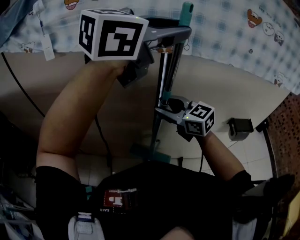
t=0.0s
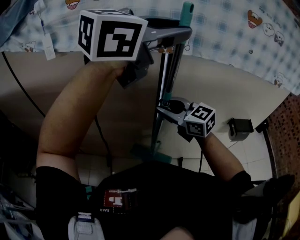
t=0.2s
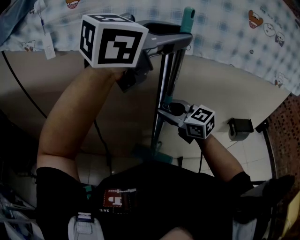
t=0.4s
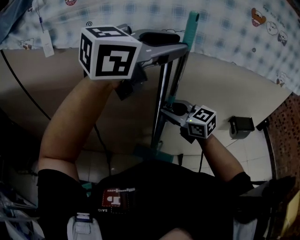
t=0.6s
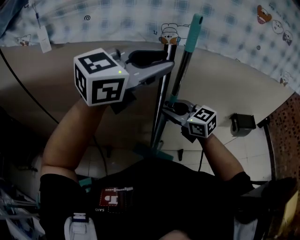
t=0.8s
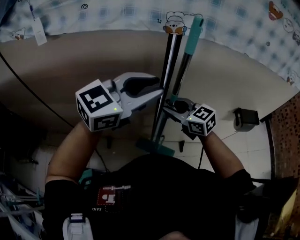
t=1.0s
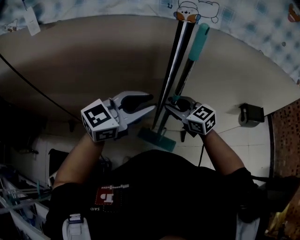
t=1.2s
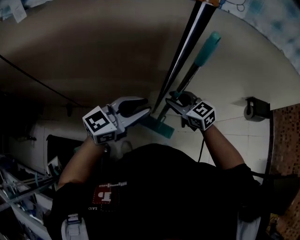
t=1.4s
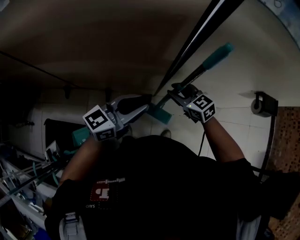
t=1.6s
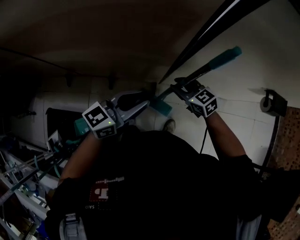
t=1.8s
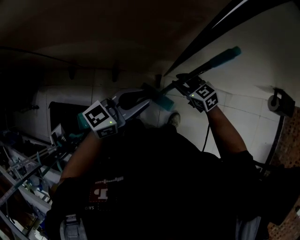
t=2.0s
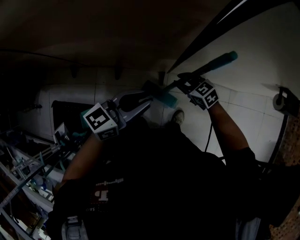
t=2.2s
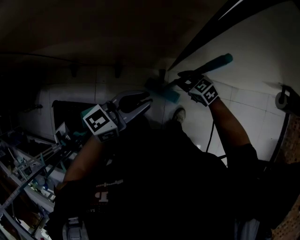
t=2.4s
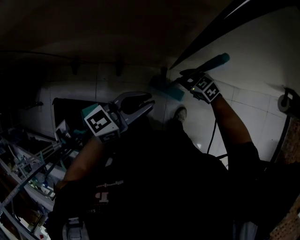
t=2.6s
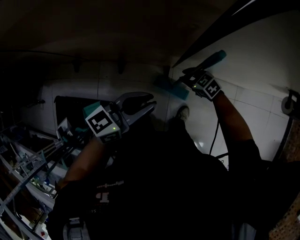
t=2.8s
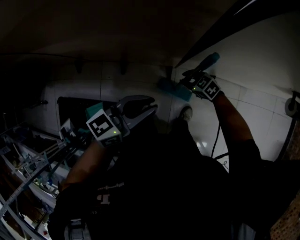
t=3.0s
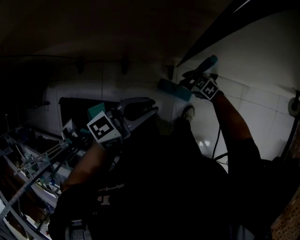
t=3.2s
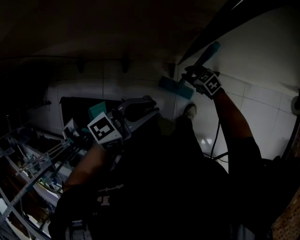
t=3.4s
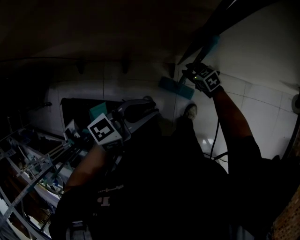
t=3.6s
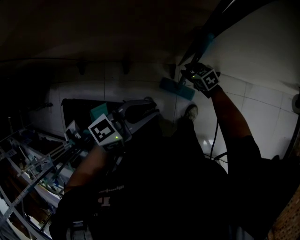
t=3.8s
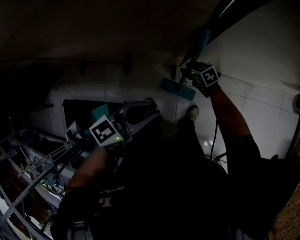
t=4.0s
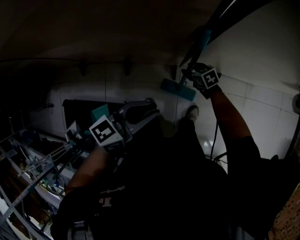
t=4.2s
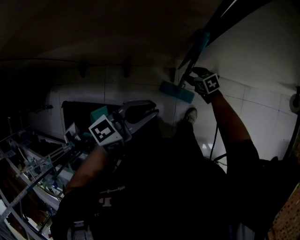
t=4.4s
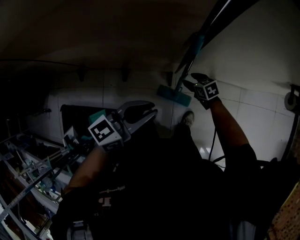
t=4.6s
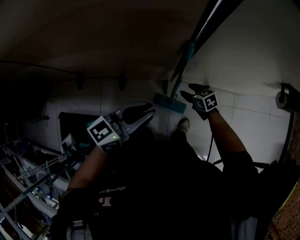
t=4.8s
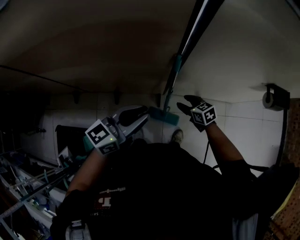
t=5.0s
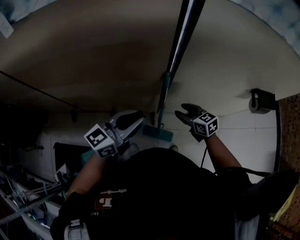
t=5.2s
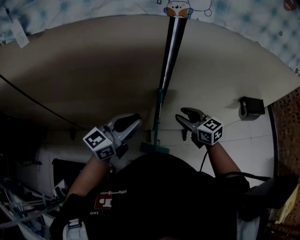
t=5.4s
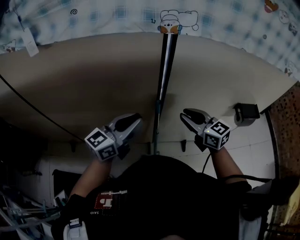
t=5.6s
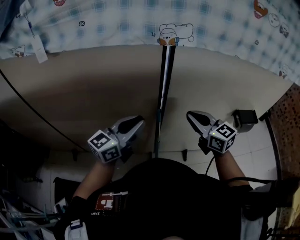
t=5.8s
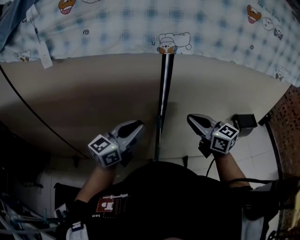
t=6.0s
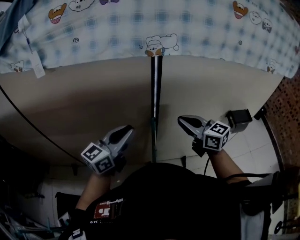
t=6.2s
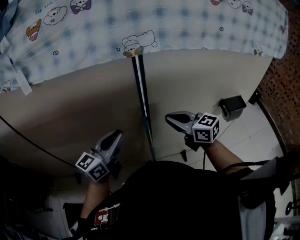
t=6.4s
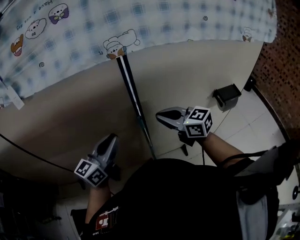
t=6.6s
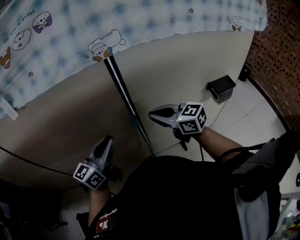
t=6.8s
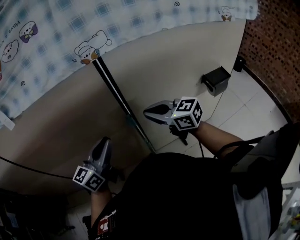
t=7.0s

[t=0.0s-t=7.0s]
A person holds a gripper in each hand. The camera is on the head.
t=0.0s to t=1.4s: The right gripper moves downward, about 25 cm; the left gripper heads downward, covering approximately 40 cm, and changes its angle by roughly 20 degrees.
t=1.4s to t=2.8s: The right gripper shifts approximately 30 cm downward, and swivels some 30 degrees; the left gripper shifts approximately 15 cm downward, and swivels some 20 degrees.
t=2.8s to t=4.2s: The right gripper goes about 5 cm downward, and swivels about 20 degrees.
t=4.2s to t=5.6s: The left gripper travels upward by some 25 cm, and turns by approximately 30 degrees. Meanwhile the right gripper heads upward, covering some 50 cm, and angles its fingers upward, by about 40 degrees.
t=5.6s to t=7.0s: The right gripper heads upward, covering roughly 5 cm, and closes up.

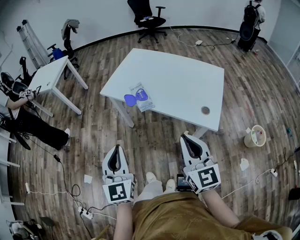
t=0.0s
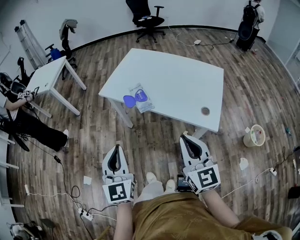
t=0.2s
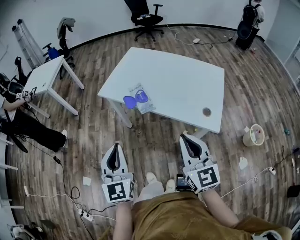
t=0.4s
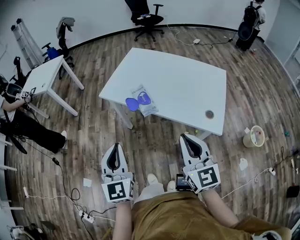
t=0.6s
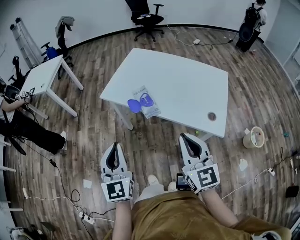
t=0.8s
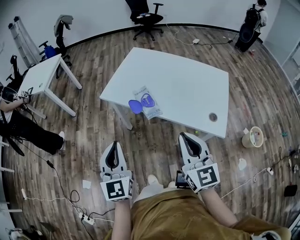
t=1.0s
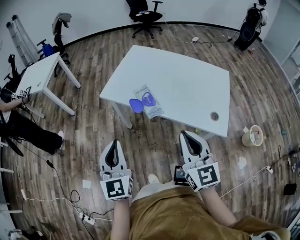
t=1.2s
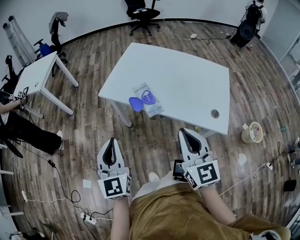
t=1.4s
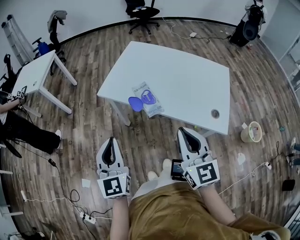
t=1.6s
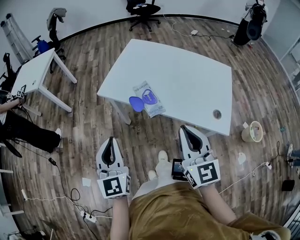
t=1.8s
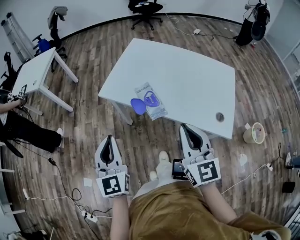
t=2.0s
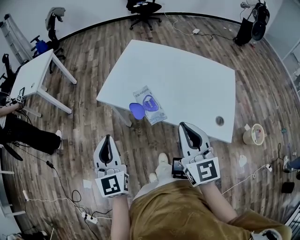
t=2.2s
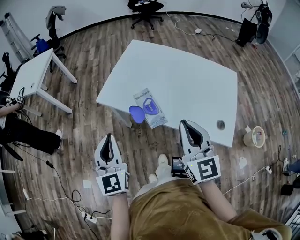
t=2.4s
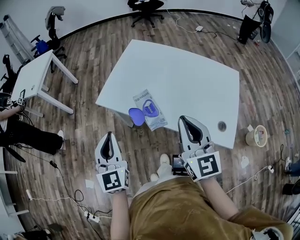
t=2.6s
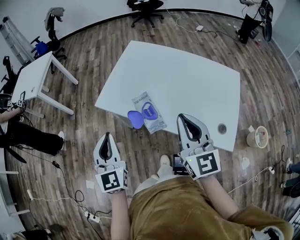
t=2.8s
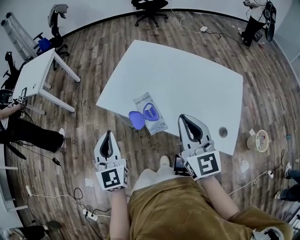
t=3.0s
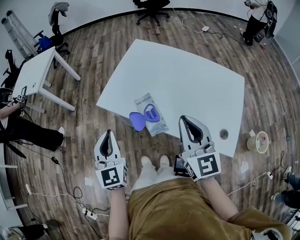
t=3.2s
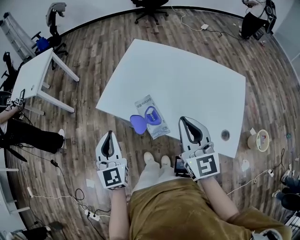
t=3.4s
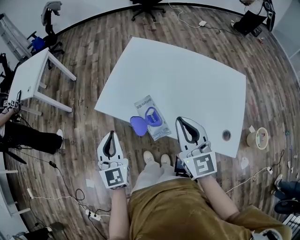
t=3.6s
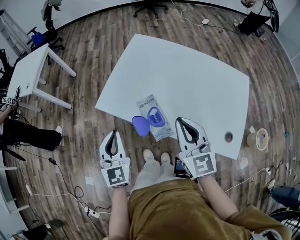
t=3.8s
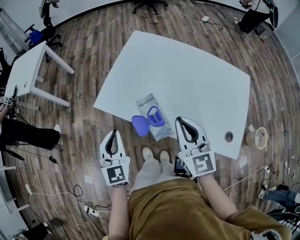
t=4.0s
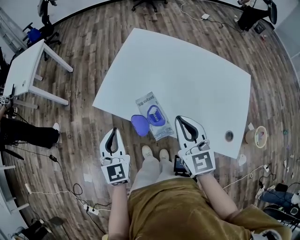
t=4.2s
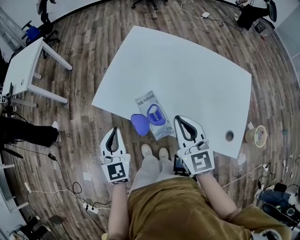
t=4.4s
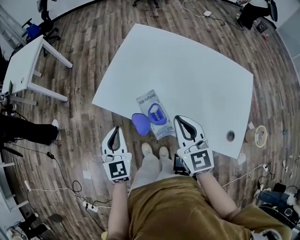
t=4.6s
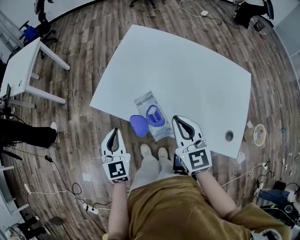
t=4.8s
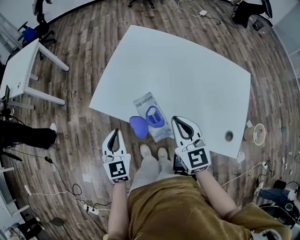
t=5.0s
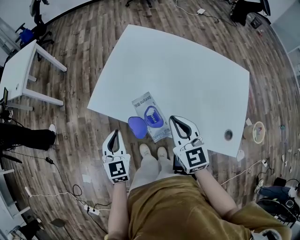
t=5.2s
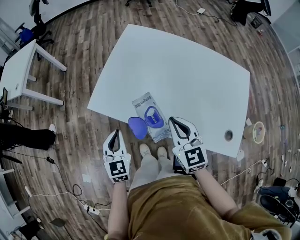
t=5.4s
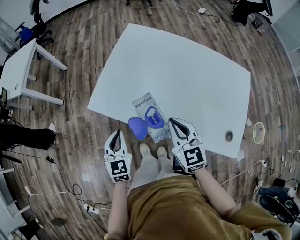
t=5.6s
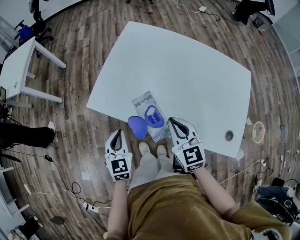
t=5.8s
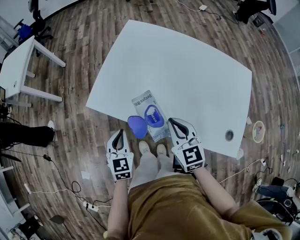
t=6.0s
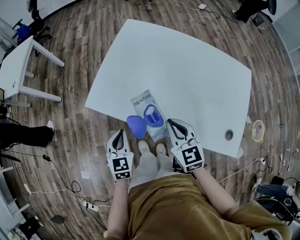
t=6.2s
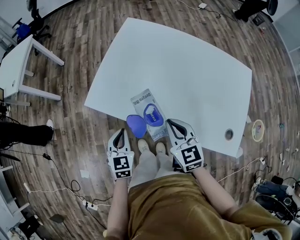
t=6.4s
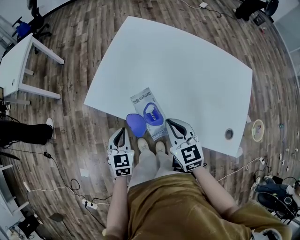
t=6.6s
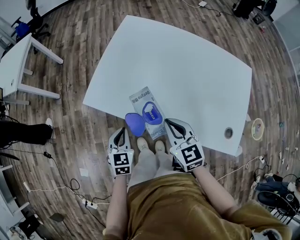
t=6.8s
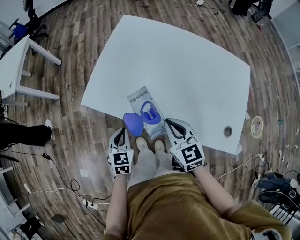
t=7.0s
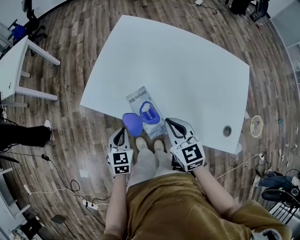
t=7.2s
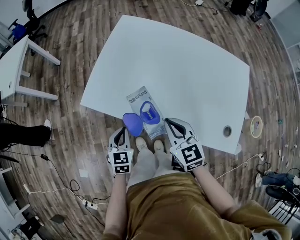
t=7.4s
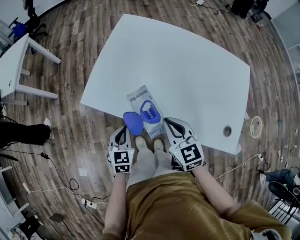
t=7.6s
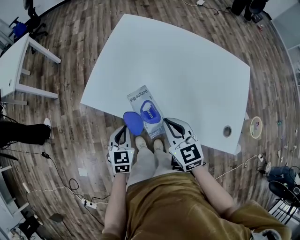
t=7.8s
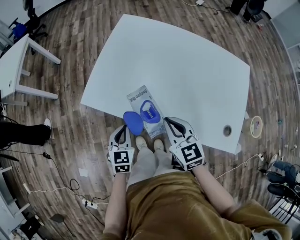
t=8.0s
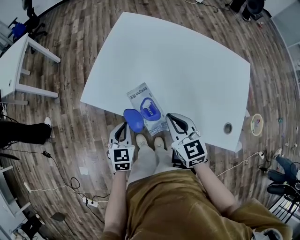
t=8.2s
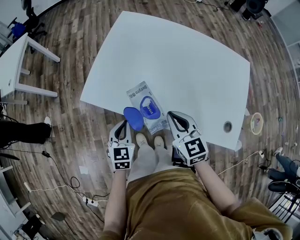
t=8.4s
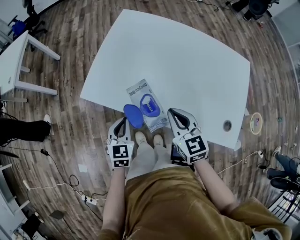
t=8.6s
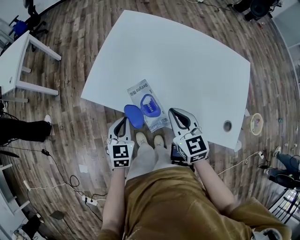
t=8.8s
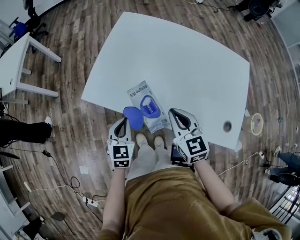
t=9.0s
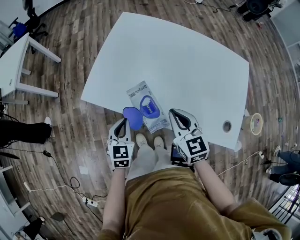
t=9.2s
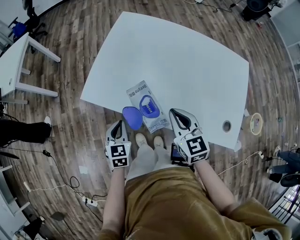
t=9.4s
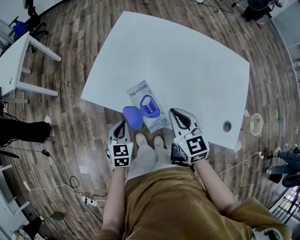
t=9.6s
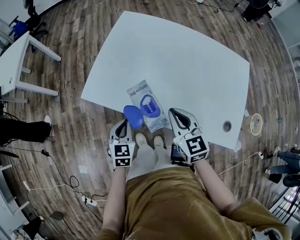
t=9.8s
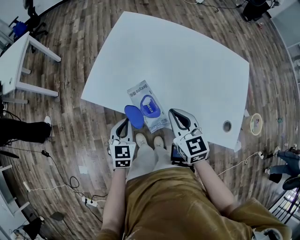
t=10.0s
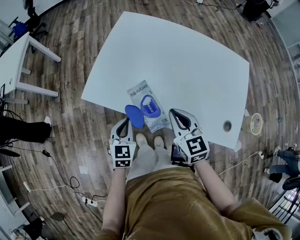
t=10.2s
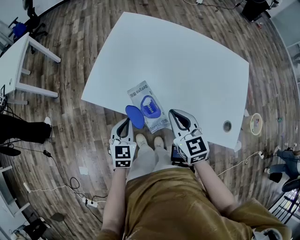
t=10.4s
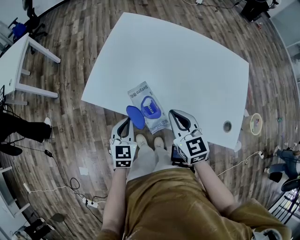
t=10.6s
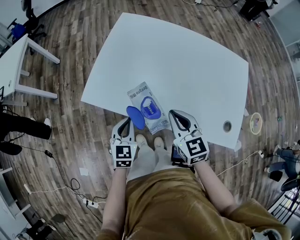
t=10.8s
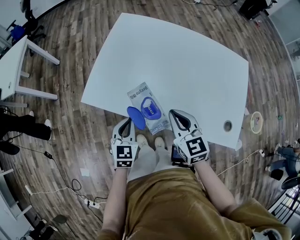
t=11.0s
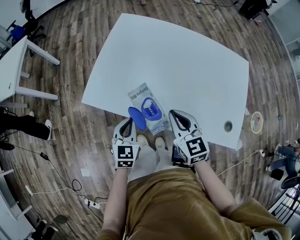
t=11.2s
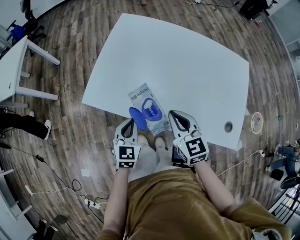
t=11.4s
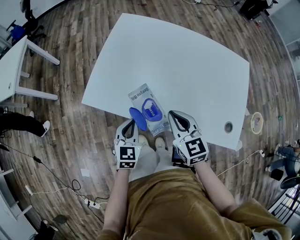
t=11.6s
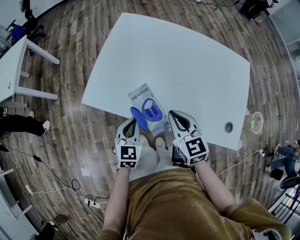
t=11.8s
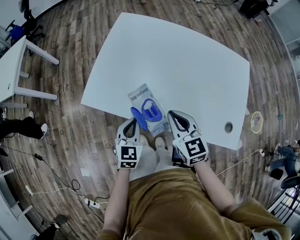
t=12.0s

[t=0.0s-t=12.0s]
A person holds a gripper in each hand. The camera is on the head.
t=0.0s to t=1.6s: The two grippers go roughly 15 cm forward and to the left.
t=1.6s to t=3.0s: Both grippers move forward, approximately 15 cm.
t=3.0s to t=4.4s: Both grippers move downward and forward, about 15 cm.
t=4.4s to t=6.0s: The two grippers go roughly 10 cm downward.
t=6.0s to t=7.6s: The left gripper shifts by roughly 5 cm.
t=7.6s to t=10.4s: The grippers move only a little.
t=10.4s to t=12.0s: The grippers stay close to where they were, moving slightly.

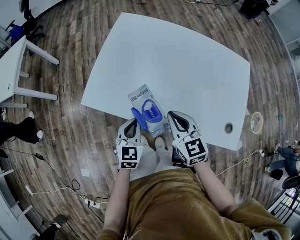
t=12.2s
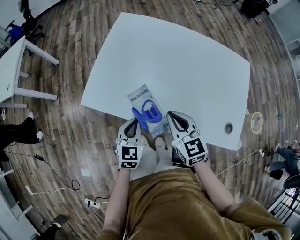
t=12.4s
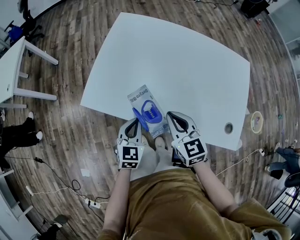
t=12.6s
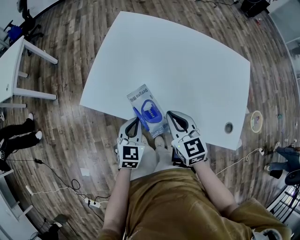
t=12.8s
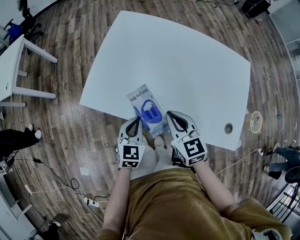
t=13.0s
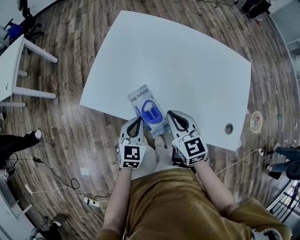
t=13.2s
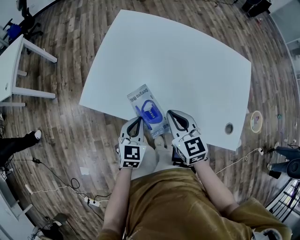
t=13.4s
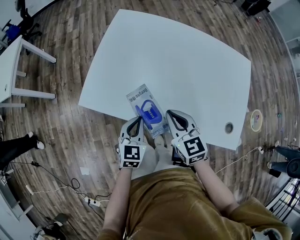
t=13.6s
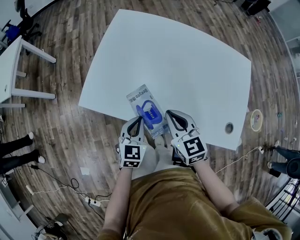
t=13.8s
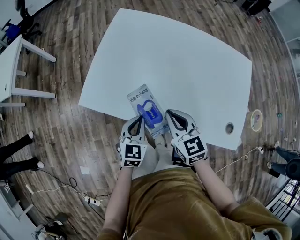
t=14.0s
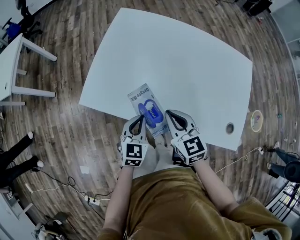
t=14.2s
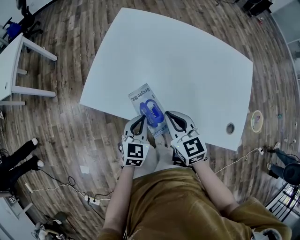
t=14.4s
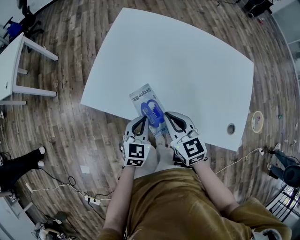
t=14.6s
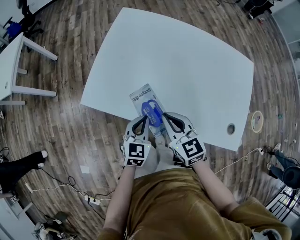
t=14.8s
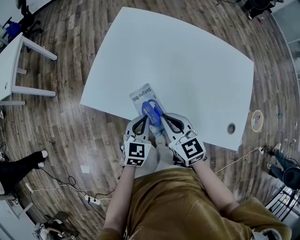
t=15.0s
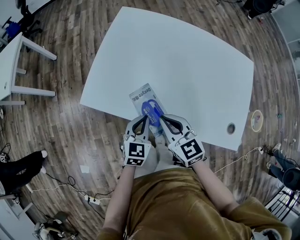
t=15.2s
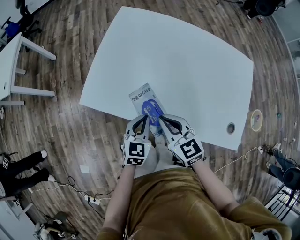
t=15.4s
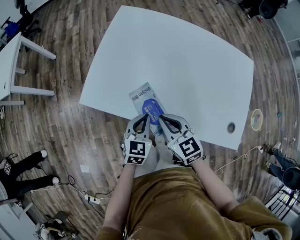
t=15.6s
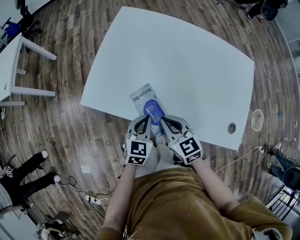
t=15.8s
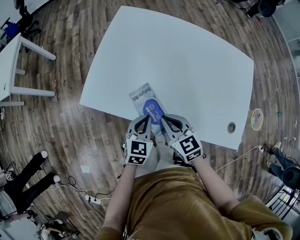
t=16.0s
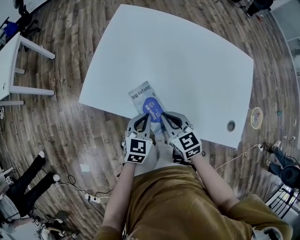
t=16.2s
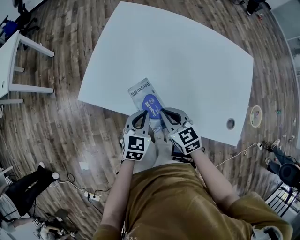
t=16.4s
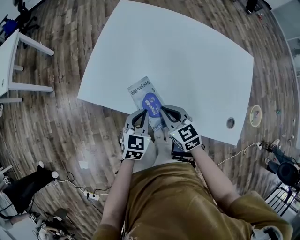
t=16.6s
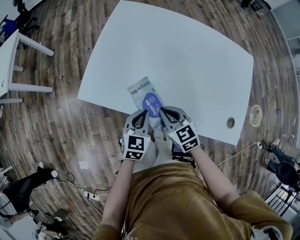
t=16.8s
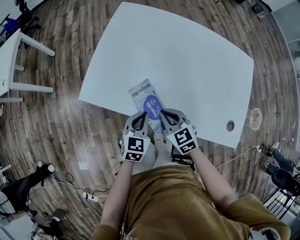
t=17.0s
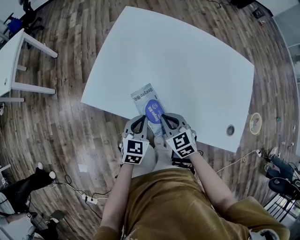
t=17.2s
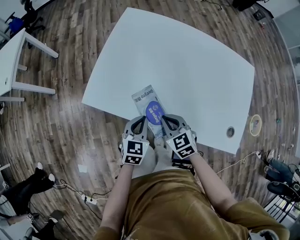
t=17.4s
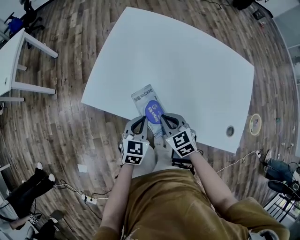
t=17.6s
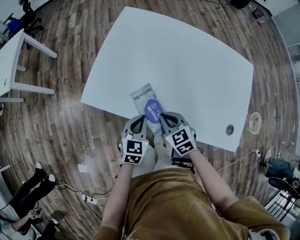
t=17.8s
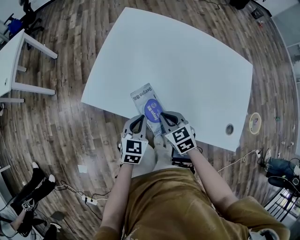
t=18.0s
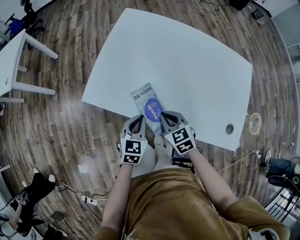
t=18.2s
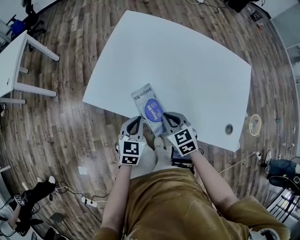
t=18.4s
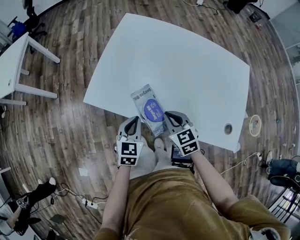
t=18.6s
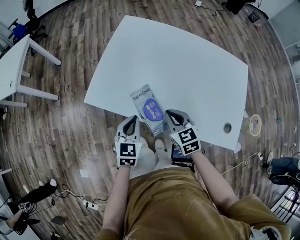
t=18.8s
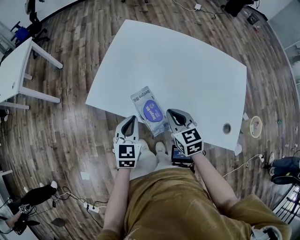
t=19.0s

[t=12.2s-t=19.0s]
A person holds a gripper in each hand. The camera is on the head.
t=12.2s to t=15.0s: There are only small adjustments of the grippers.
t=15.0s to t=16.2s: The right gripper heads downward, covering roughly 5 cm.
t=16.2s to t=17.6s: The grippers stay close to where they were, moving slightly.
t=17.6s to t=19.0s: The grippers both shift upward by some 10 cm.
